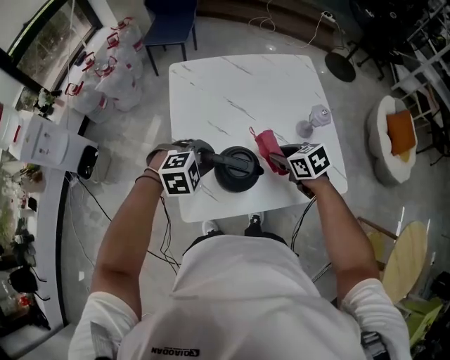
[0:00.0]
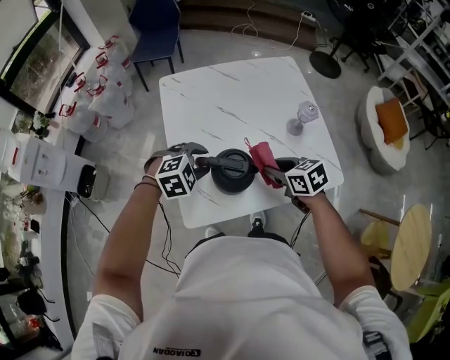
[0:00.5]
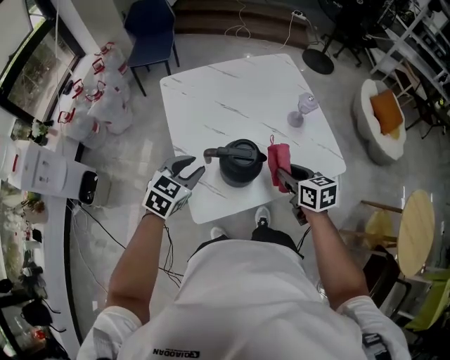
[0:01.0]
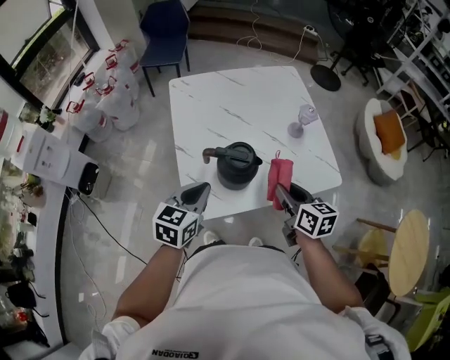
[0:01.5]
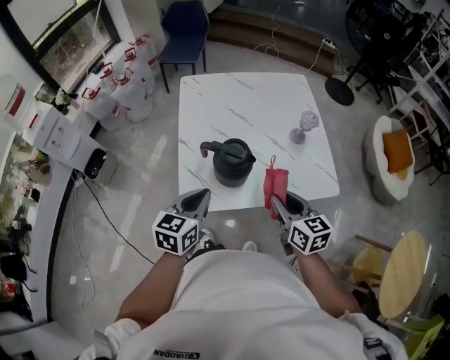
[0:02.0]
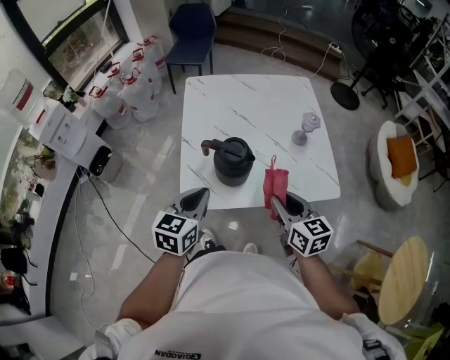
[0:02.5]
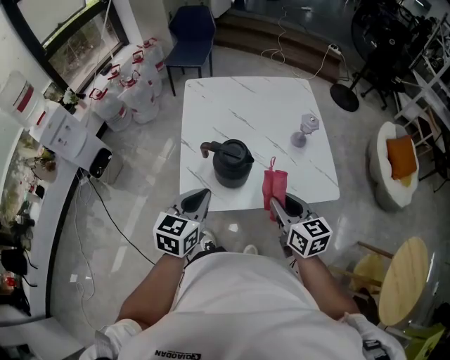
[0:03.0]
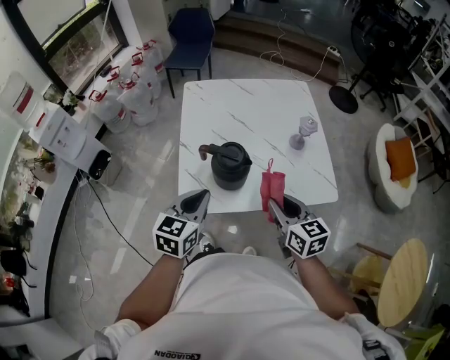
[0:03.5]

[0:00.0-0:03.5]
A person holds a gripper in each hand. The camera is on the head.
0:00.0 to 0:02.0: Both grippers travel together backward and upward, approximately 20 cm. The right gripper swivels about 30 degrees, while the left gripper twists some 60 degrees counterclockwise, seen from behind, and closes its fingers.
0:02.0 to 0:03.5: There are only small adjustments of the grippers.

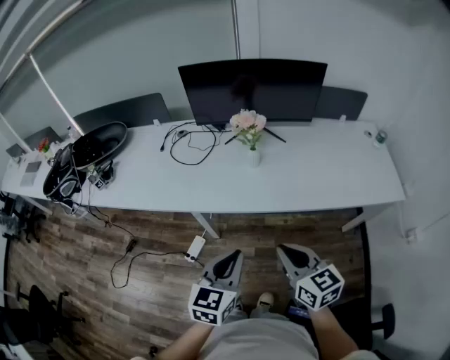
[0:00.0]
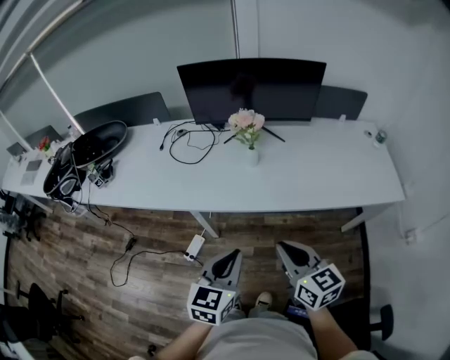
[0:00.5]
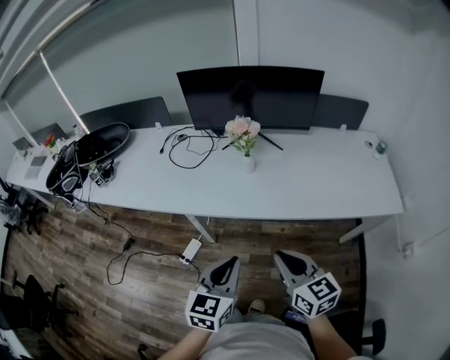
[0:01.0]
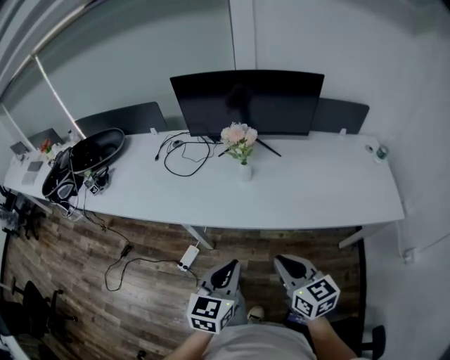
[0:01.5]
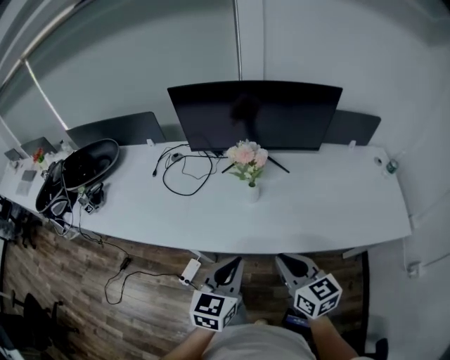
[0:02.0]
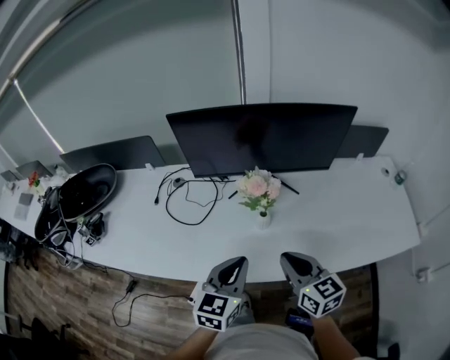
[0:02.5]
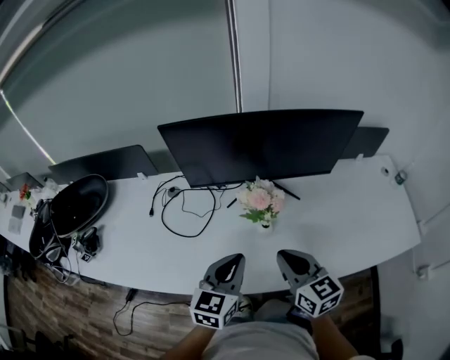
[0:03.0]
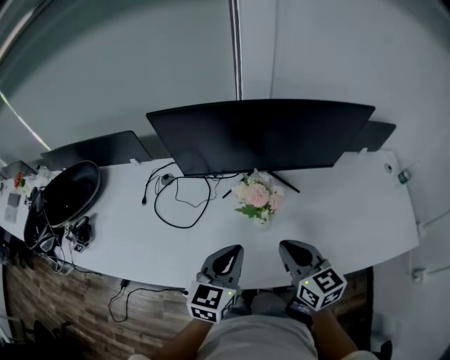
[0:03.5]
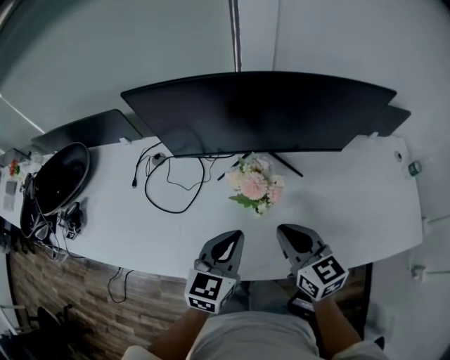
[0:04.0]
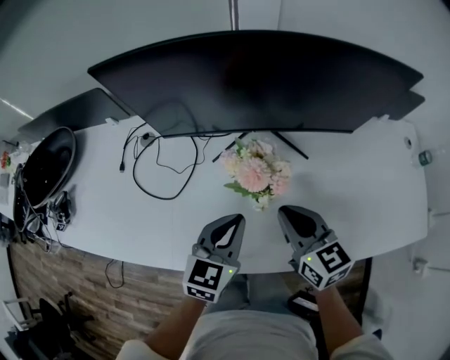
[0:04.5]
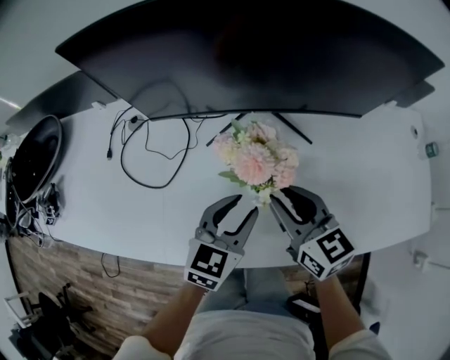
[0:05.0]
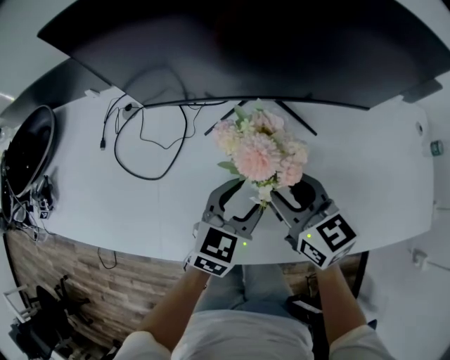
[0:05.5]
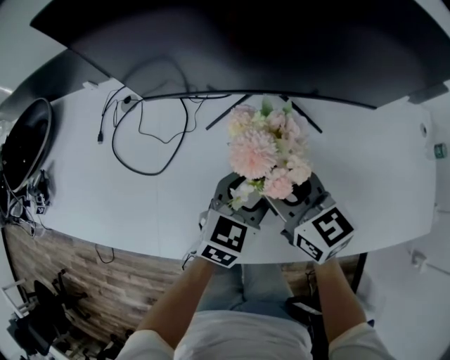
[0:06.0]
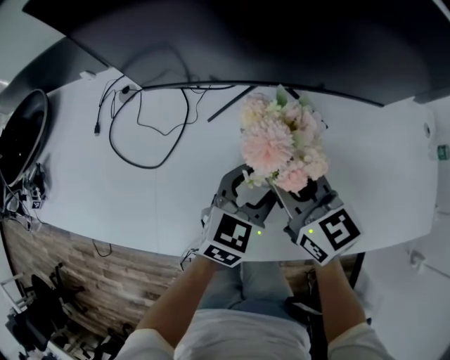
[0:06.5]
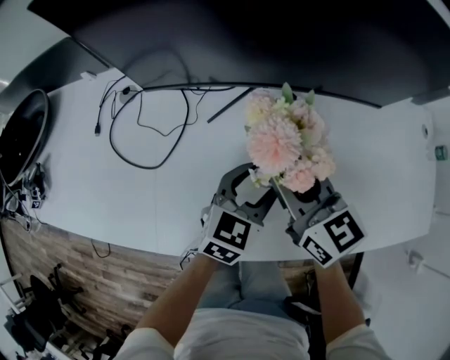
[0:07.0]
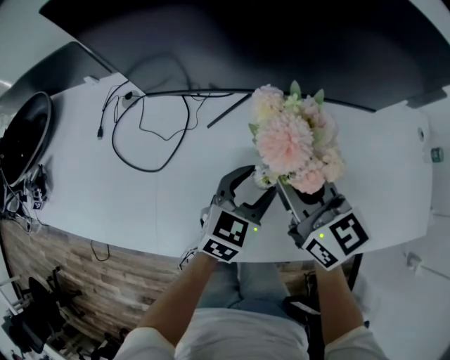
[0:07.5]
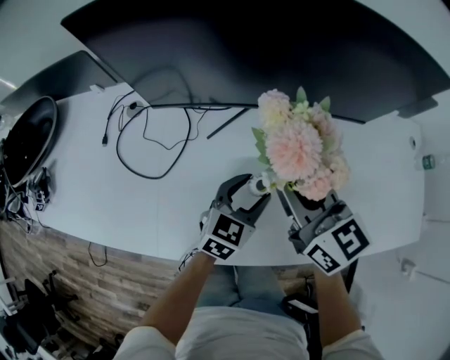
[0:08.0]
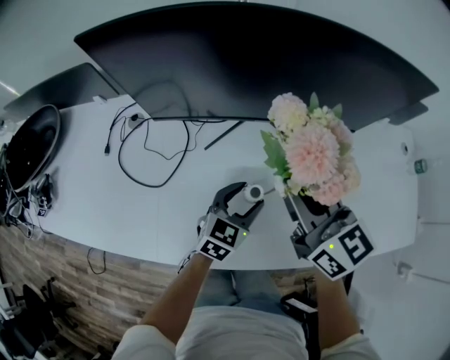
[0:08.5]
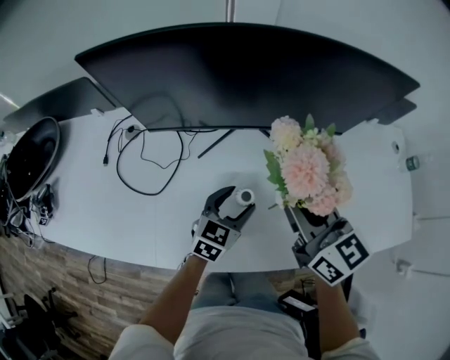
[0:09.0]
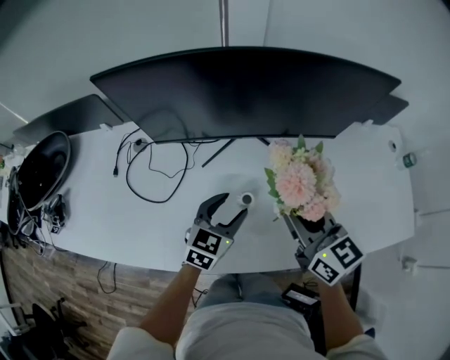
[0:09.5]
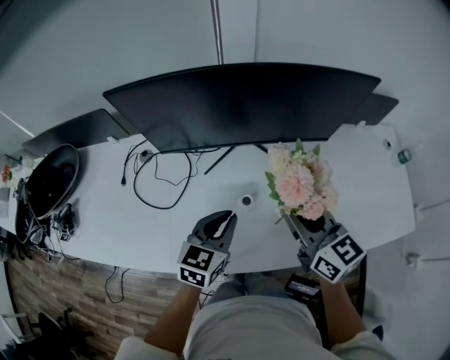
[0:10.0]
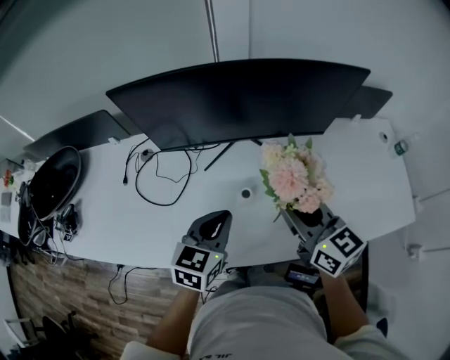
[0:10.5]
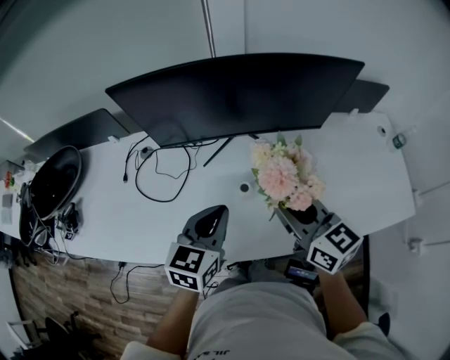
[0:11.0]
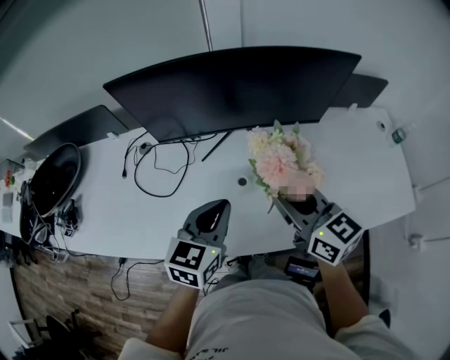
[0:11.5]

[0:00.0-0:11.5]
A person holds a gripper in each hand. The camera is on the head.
0:00.0 to 0:02.0: Both grippers travel together forward, approximately 15 cm.
0:02.0 to 0:04.0: The grippers both shift forward by roughly 25 cm.
0:04.0 to 0:06.0: The right gripper goes roughly 10 cm downward and forward, and opens its fingers, while the left gripper shifts approximately 15 cm downward, forward and to the right, and opens its fingers.
0:06.0 to 0:07.5: The right gripper closes its fingers.
0:07.5 to 0:09.5: The left gripper changes place by some 5 cm. The right gripper is displaced to the right and upward by about 10 cm.
0:09.5 to 0:11.5: The left gripper goes some 15 cm upward and backward, and closes up. The right gripper changes place by about 5 cm.

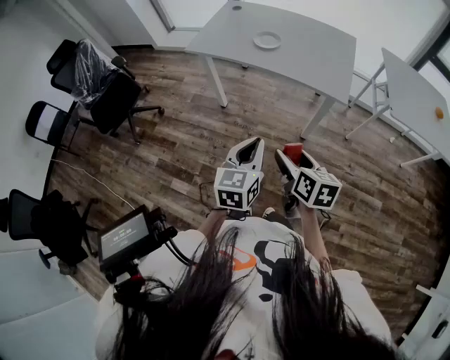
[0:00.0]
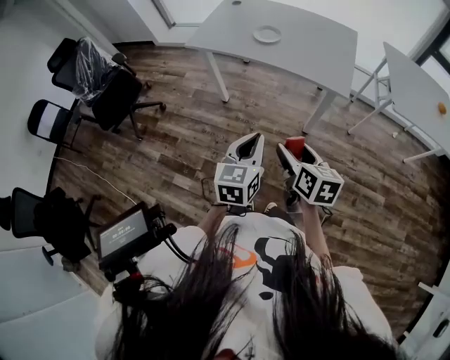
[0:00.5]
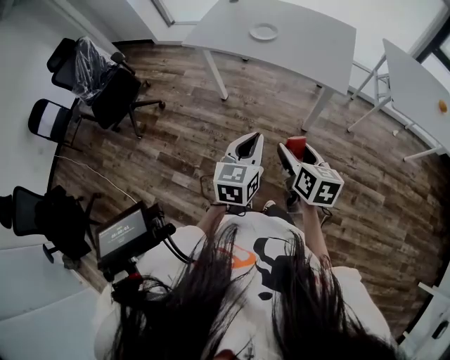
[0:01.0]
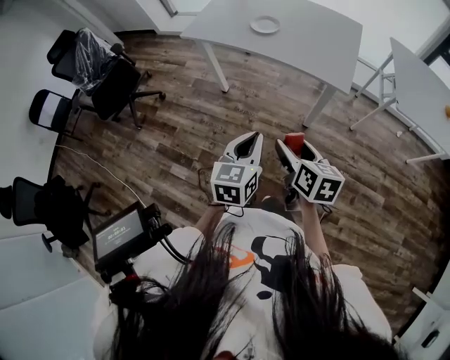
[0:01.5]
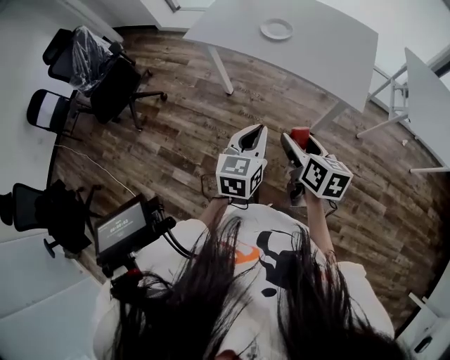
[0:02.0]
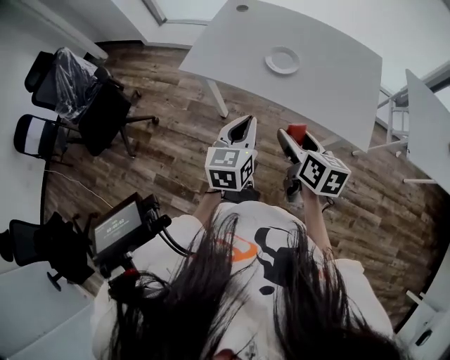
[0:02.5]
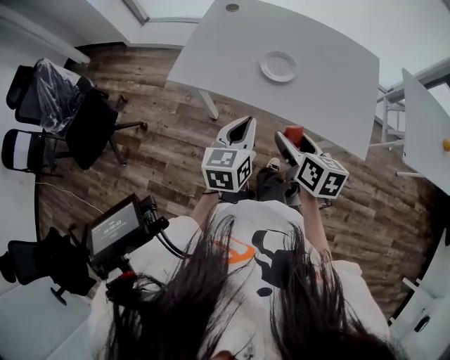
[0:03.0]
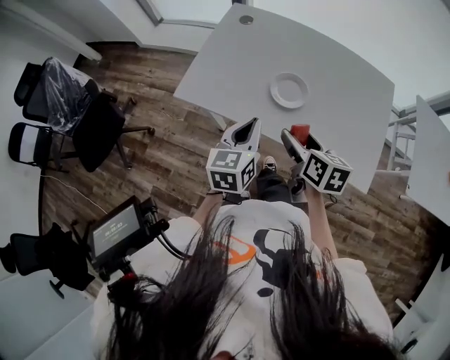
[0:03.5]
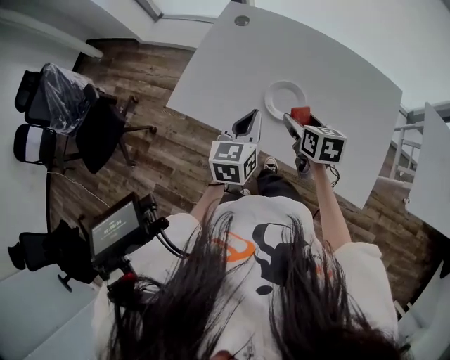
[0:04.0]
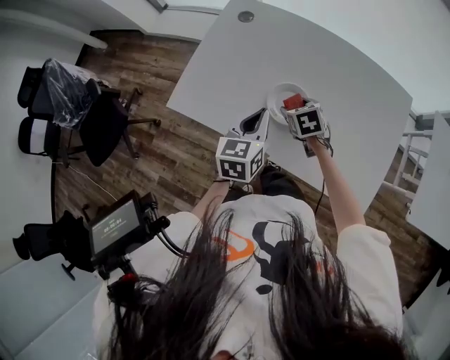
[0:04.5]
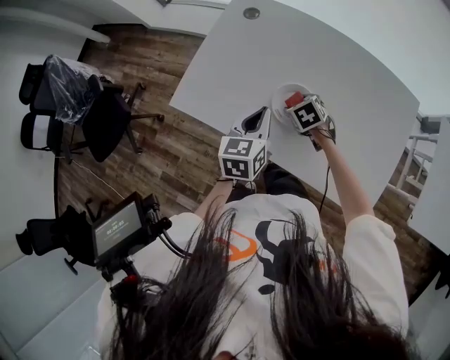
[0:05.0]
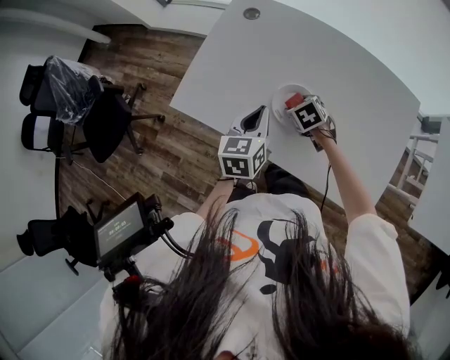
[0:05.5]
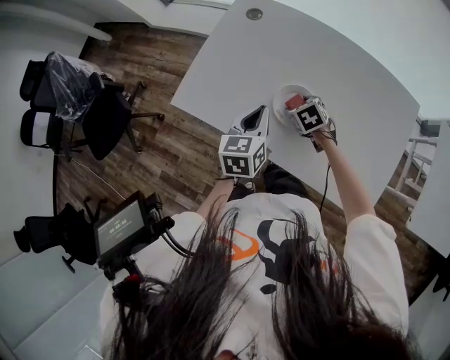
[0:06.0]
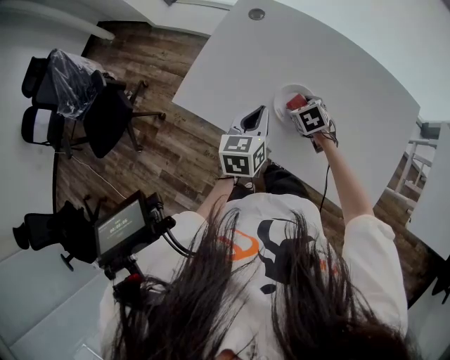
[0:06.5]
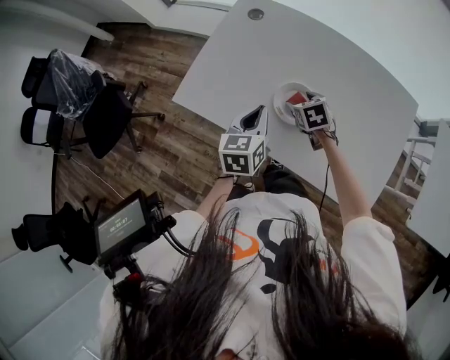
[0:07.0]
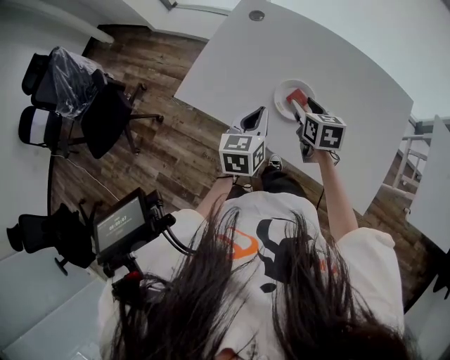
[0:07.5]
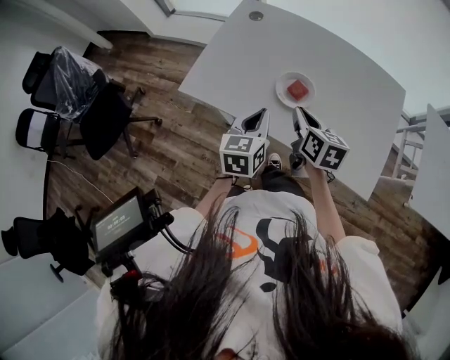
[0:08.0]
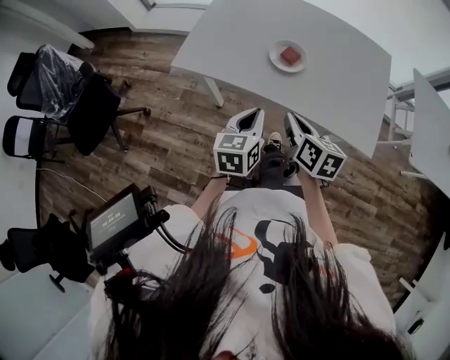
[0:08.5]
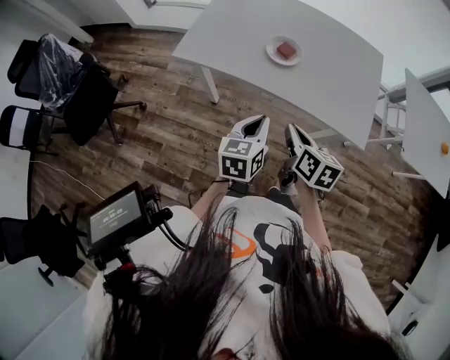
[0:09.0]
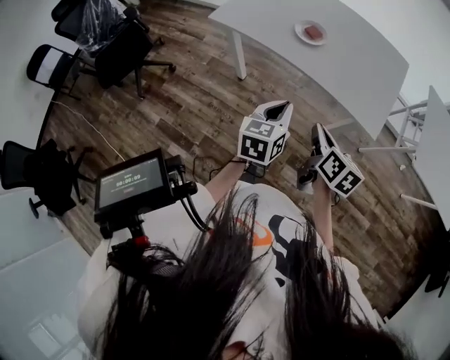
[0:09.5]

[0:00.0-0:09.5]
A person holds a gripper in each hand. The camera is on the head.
0:00.0 to 0:02.0: The two grippers go about 10 cm forward.
0:02.0 to 0:04.0: The pair of grippers is taken forward, roughly 40 cm.
0:04.0 to 0:05.5: The right gripper moves downward and forward, approximately 15 cm, and turns by some 40 degrees; the left gripper shifts by approximately 5 cm.
0:05.5 to 0:07.5: The right gripper heads upward, covering some 10 cm, and rotates approximately 40 degrees.
0:07.5 to 0:09.5: Both grippers travel together backward, approximately 35 cm. The right gripper turns by roughly 20 degrees, and closes its fingers.

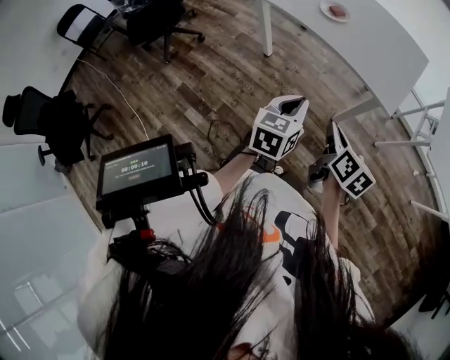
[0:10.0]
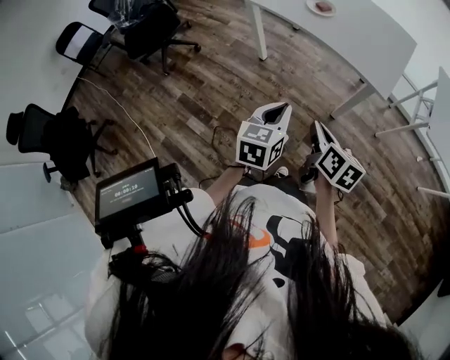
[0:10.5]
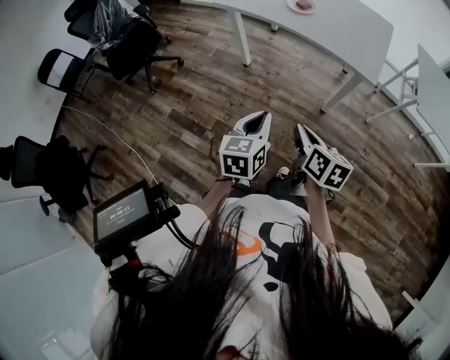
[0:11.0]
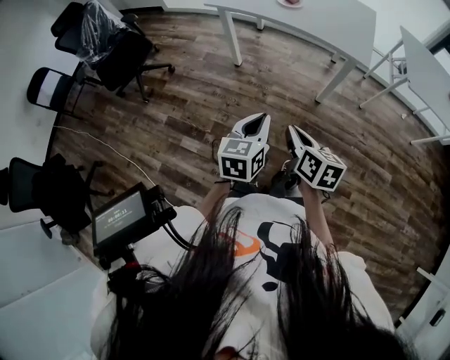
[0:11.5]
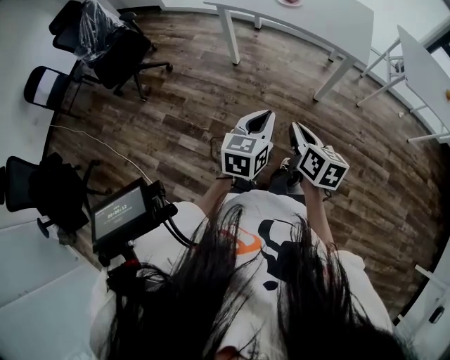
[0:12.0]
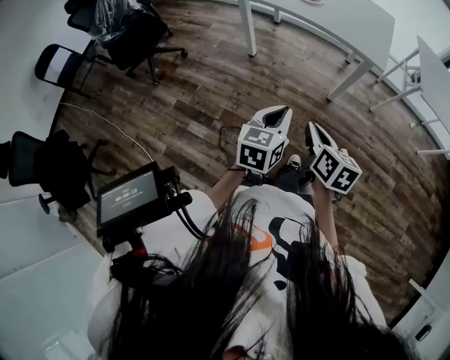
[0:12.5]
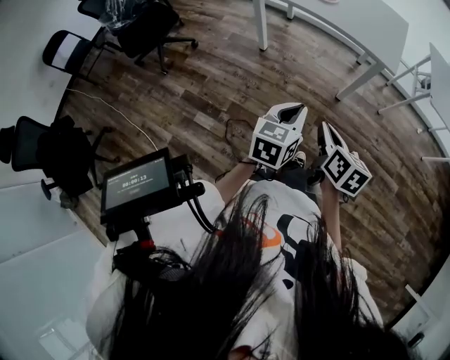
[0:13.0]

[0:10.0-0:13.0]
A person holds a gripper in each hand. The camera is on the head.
0:10.0 to 0:11.5: The left gripper heads backward and to the left, covering roughly 20 cm. Meanwhile the right gripper goes about 25 cm to the left and backward.
0:11.5 to 0:13.0: The grippers stay close to where they were, moving slightly.
